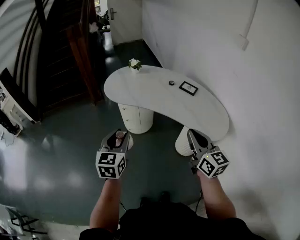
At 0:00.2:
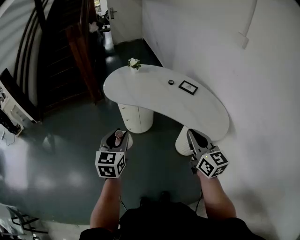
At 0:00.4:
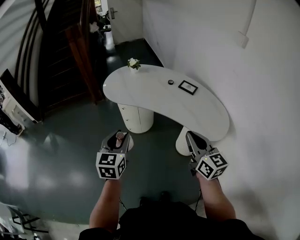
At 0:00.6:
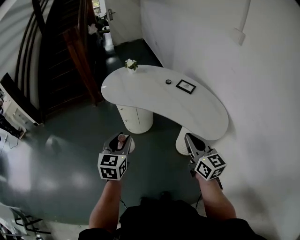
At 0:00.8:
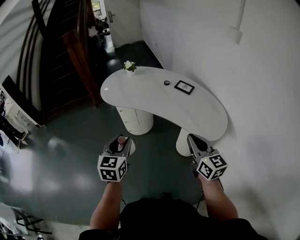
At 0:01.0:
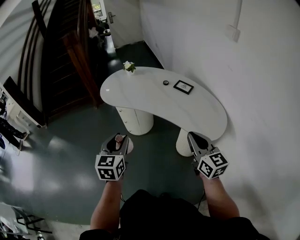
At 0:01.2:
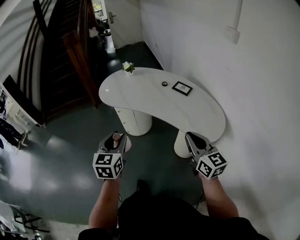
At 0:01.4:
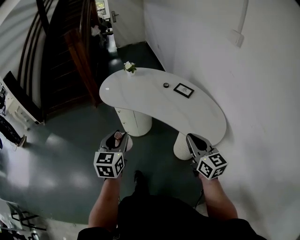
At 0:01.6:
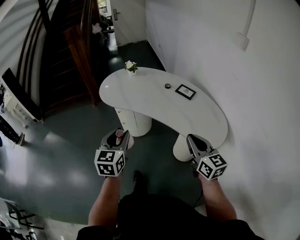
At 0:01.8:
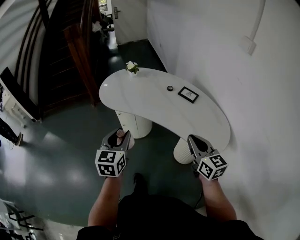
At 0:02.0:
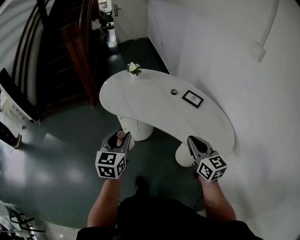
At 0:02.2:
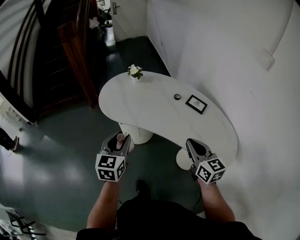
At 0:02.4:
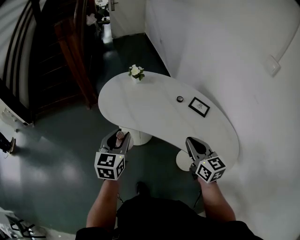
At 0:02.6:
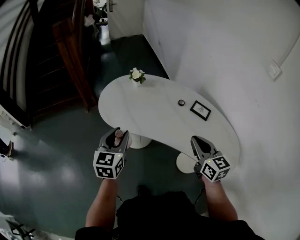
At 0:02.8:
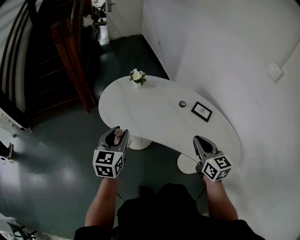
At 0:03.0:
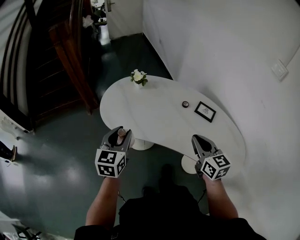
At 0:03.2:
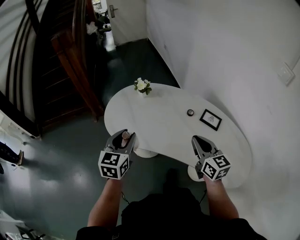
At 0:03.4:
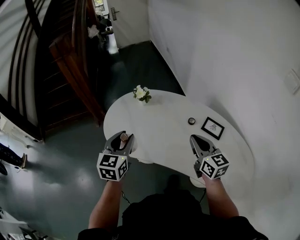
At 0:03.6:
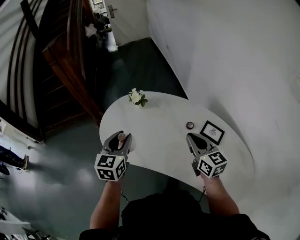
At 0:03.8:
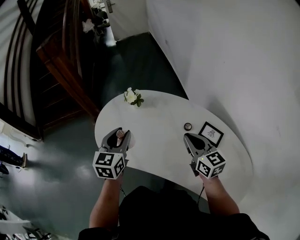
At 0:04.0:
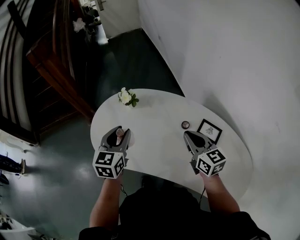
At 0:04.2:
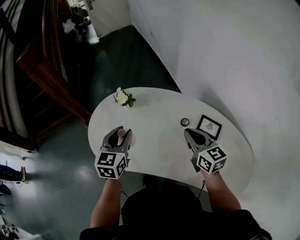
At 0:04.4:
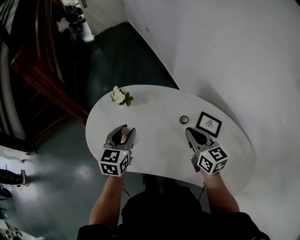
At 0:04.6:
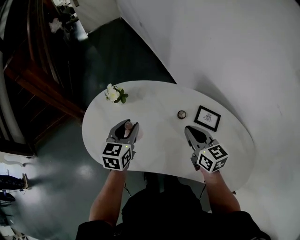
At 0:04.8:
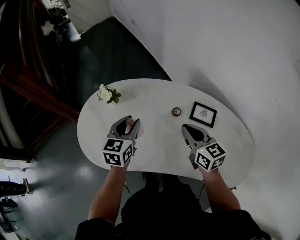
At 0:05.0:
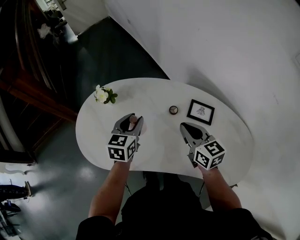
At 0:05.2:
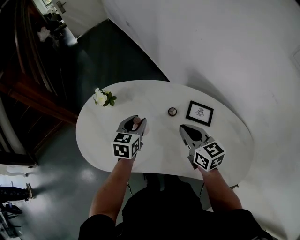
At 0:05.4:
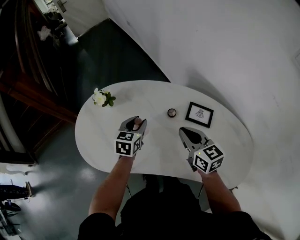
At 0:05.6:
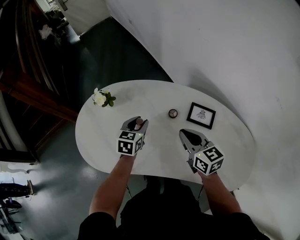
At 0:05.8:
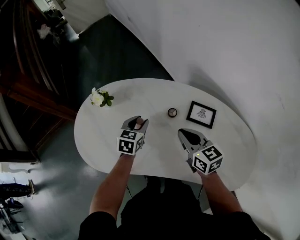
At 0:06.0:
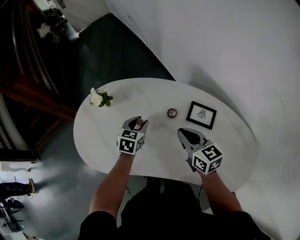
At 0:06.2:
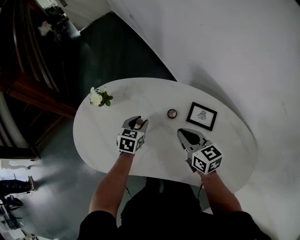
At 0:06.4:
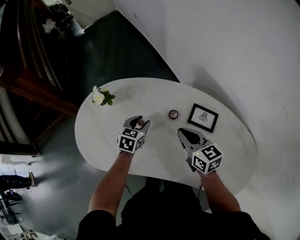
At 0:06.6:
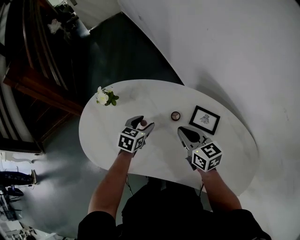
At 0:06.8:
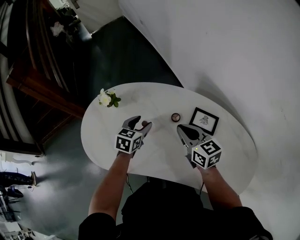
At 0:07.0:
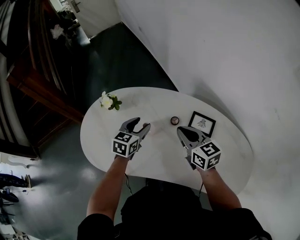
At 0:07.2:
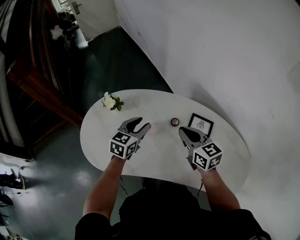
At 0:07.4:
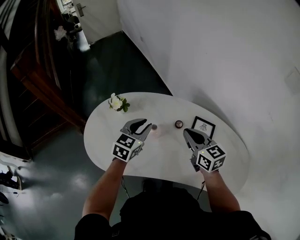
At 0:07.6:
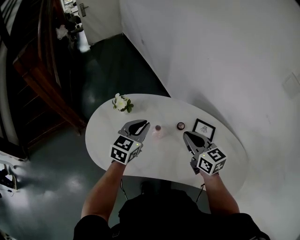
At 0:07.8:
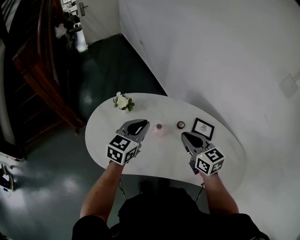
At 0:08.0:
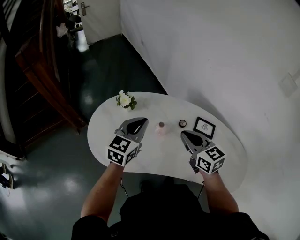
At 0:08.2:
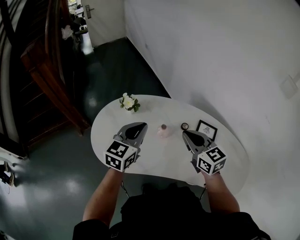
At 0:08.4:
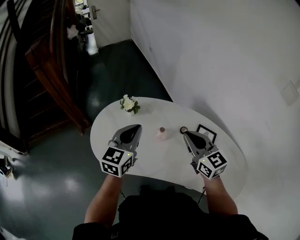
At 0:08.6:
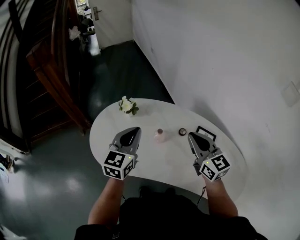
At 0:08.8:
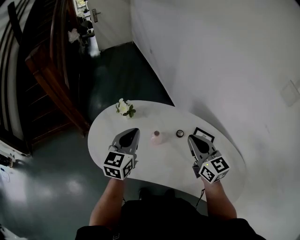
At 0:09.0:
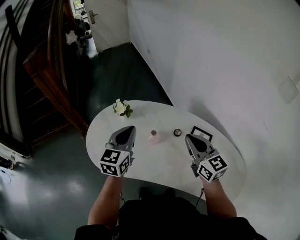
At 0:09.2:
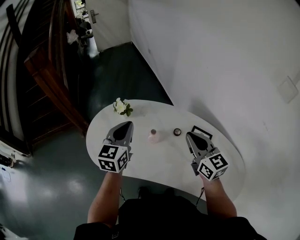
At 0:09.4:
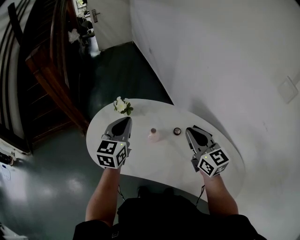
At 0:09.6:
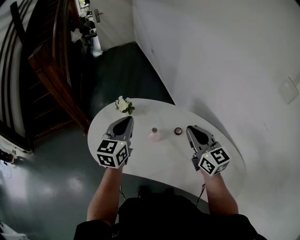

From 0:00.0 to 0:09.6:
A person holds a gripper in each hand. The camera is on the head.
From 0:00.0 to 0:01.6: The grippers both shift to the right by approximately 10 cm.
From 0:01.6 to 0:03.2: The two grippers go about 30 cm forward.
From 0:03.2 to 0:04.8: The right gripper shifts approximately 20 cm forward and downward. Meanwhile the left gripper moves forward and to the right, about 25 cm.
From 0:04.8 to 0:06.4: The right gripper shifts by about 5 cm. The left gripper travels downward and to the right by about 15 cm.
From 0:06.4 to 0:08.0: The right gripper travels upward, to the left and backward by approximately 15 cm, while the left gripper is displaced upward and to the left by roughly 25 cm, points its fingers roughly 30 degrees further upward, and closes its fingers.
From 0:08.0 to 0:09.6: The right gripper heads to the right and upward, covering approximately 10 cm, while the left gripper goes approximately 5 cm upward, and rotates roughly 20 degrees.

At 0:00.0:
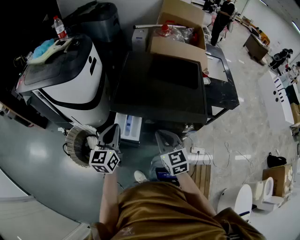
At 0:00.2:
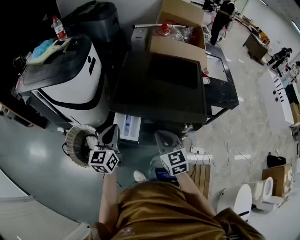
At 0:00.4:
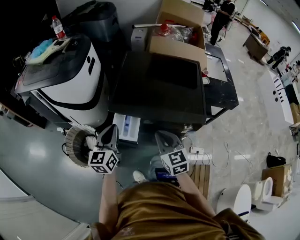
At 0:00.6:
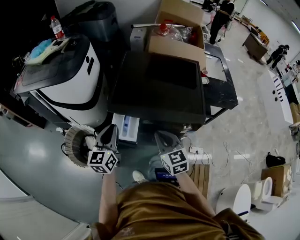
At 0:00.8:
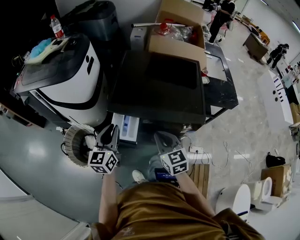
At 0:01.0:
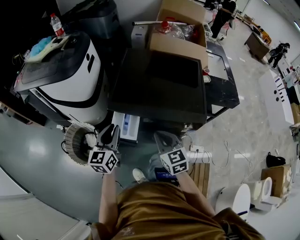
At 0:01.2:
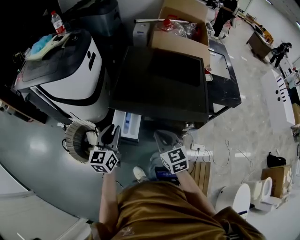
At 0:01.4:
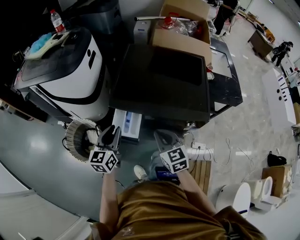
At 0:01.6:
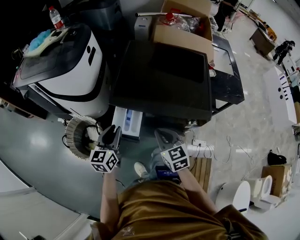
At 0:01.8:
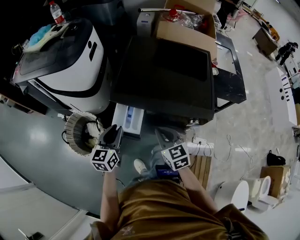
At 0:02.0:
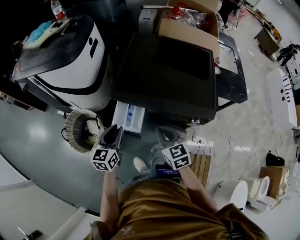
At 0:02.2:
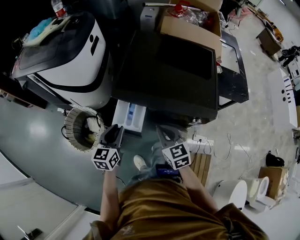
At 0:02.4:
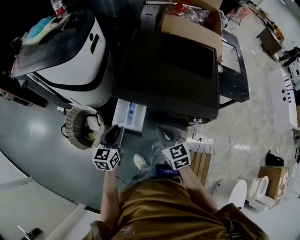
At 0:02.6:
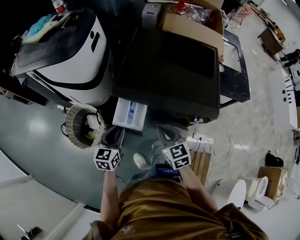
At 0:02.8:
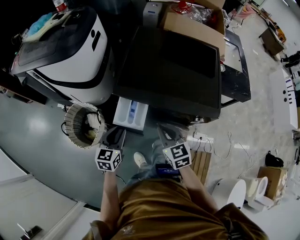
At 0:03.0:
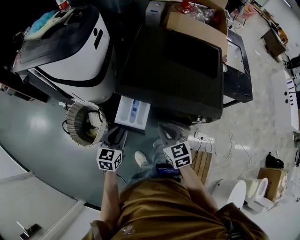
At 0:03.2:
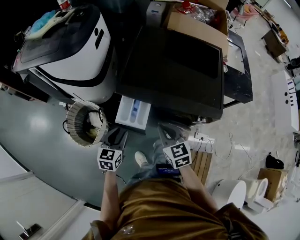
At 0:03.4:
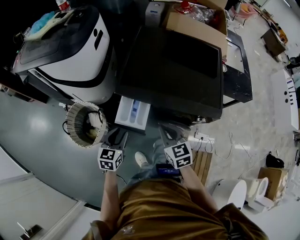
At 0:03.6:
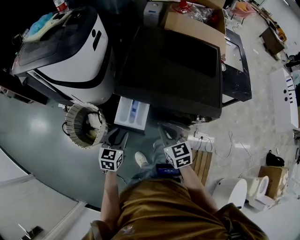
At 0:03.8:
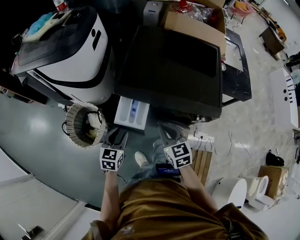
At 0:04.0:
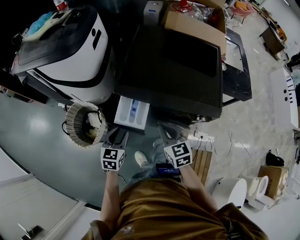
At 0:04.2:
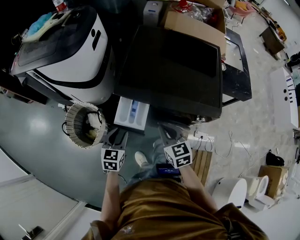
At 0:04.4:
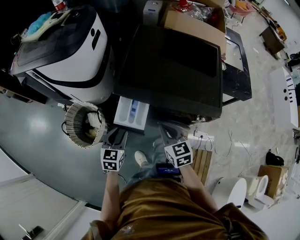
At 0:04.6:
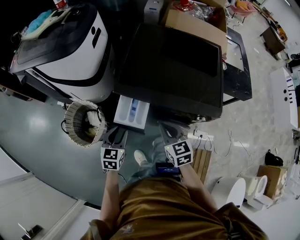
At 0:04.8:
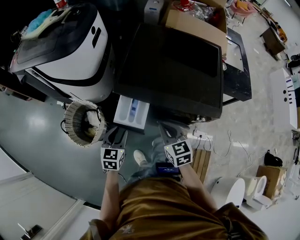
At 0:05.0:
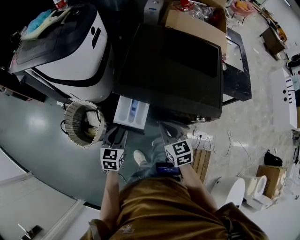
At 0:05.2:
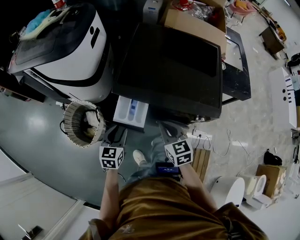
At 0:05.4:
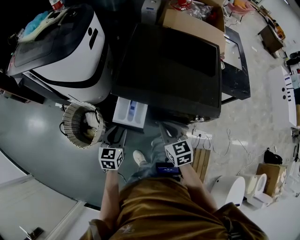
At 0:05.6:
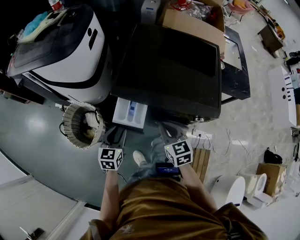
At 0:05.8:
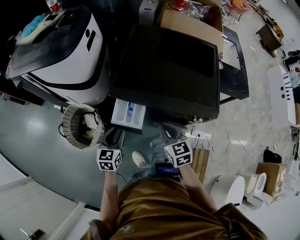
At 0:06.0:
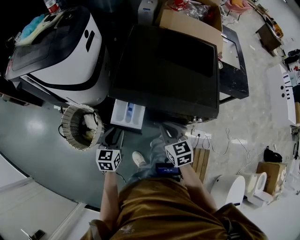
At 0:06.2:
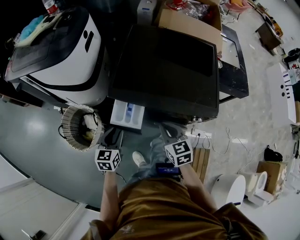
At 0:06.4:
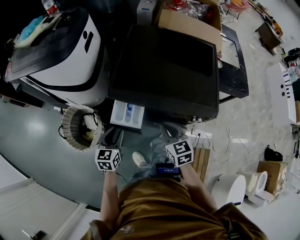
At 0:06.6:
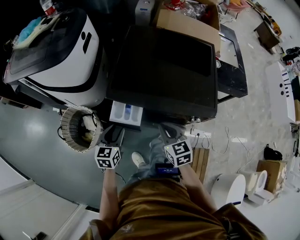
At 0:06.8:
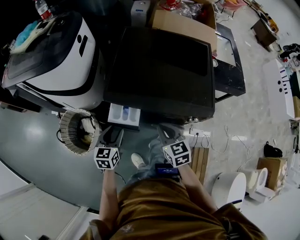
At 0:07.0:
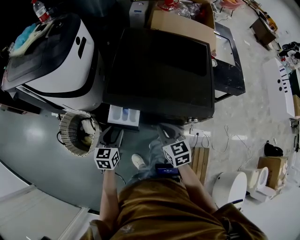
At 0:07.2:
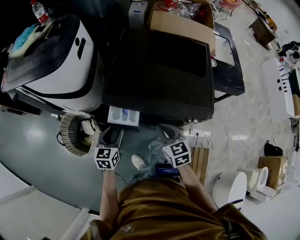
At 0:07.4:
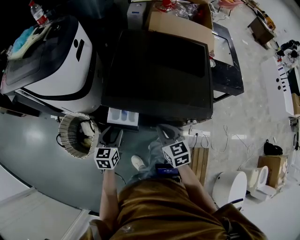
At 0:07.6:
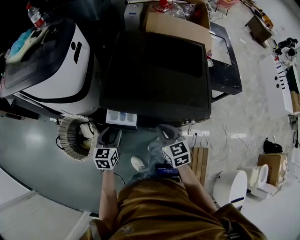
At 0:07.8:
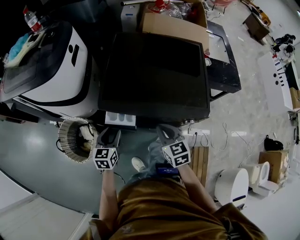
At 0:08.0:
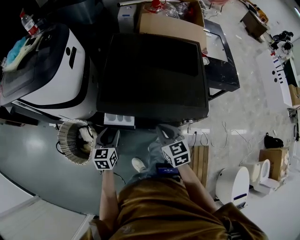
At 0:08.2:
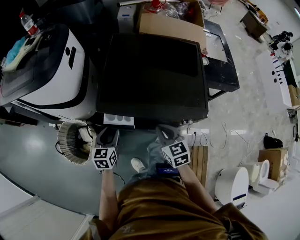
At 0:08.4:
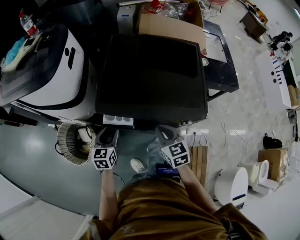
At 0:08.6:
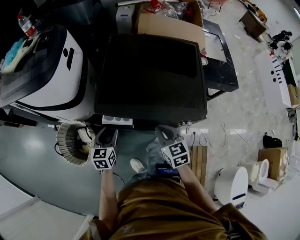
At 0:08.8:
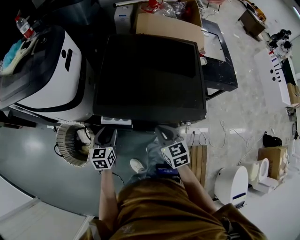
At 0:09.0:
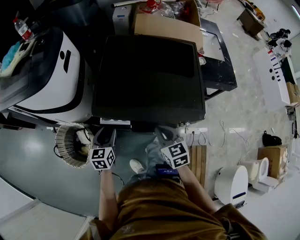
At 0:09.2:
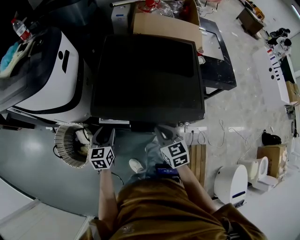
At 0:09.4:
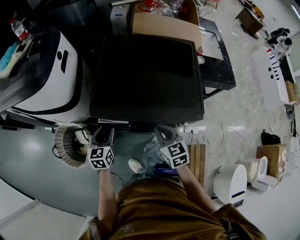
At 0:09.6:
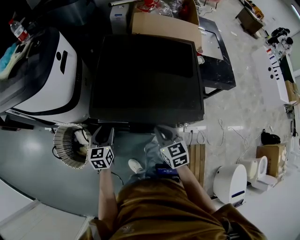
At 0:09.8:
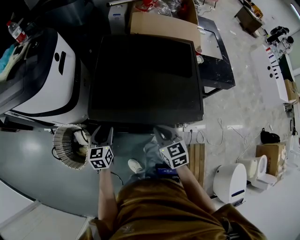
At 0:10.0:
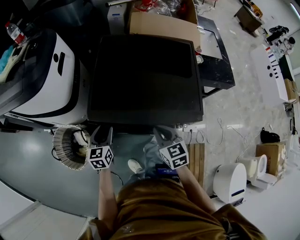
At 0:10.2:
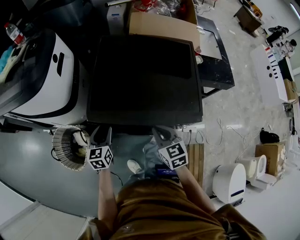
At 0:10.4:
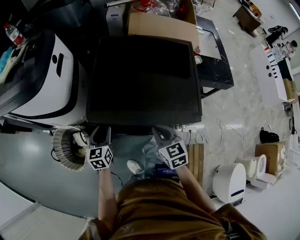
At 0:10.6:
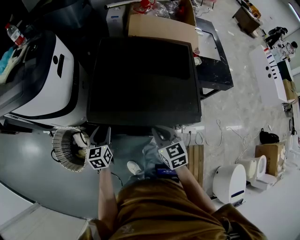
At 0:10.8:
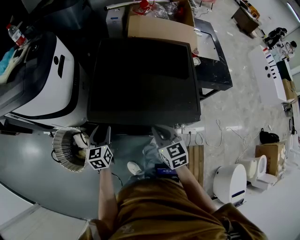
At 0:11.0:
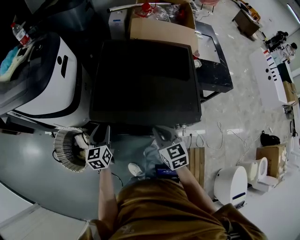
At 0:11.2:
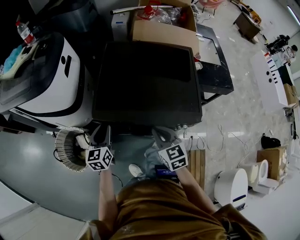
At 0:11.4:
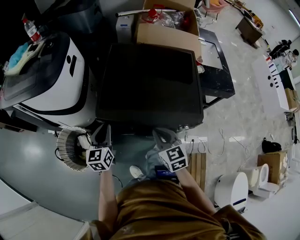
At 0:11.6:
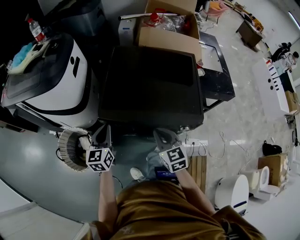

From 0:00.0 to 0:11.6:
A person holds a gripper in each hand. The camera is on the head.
From 0:00.0 to 0:01.4: The grippers move only a little.
From 0:01.4 to 0:02.8: The left gripper goes some 10 cm downward.
From 0:02.8 to 0:07.2: There are only small adjustments of the grippers.
From 0:07.2 to 0:08.8: The grippers stay close to where they were, moving slightly.
From 0:08.8 to 0:10.2: The grippers stay close to where they were, moving slightly.
From 0:10.2 to 0:11.6: The right gripper shifts by some 5 cm, while the left gripper is displaced upward by about 10 cm, and closes.

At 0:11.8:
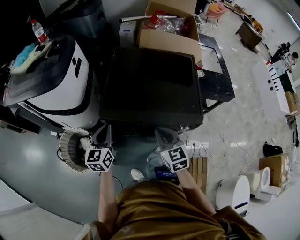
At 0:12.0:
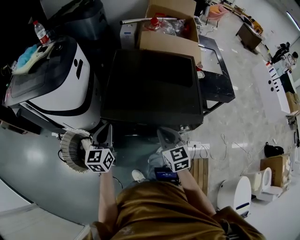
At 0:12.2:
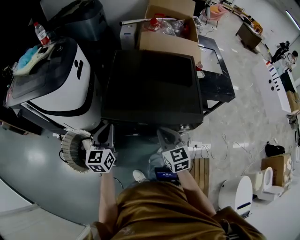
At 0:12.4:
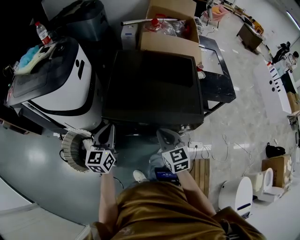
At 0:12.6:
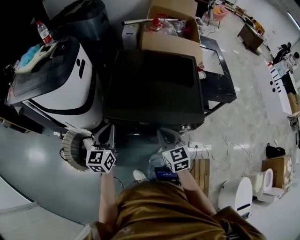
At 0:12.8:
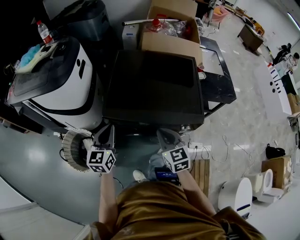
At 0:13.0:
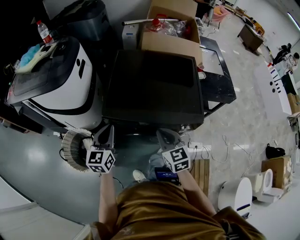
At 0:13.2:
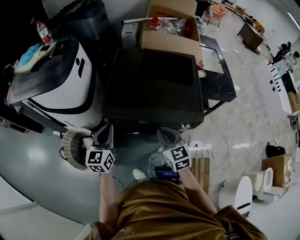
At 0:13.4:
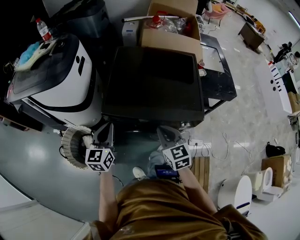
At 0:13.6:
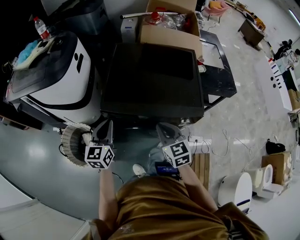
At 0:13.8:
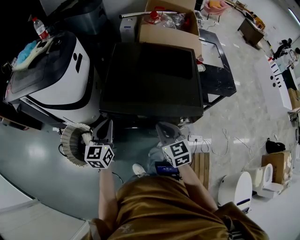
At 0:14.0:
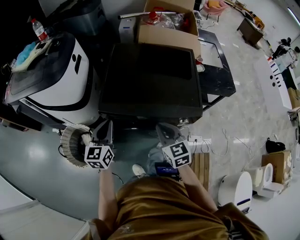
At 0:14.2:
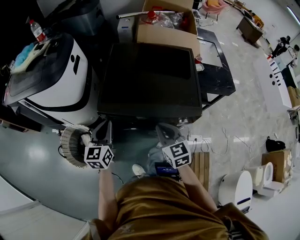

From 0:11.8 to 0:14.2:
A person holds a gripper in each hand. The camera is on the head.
From 0:11.8 to 0:14.2: The grippers make only small movements.
